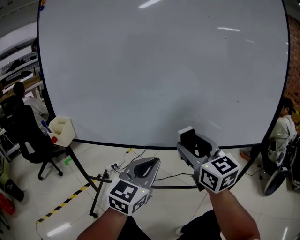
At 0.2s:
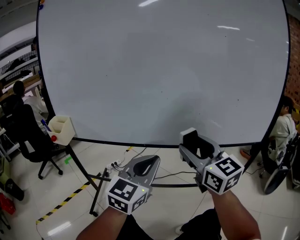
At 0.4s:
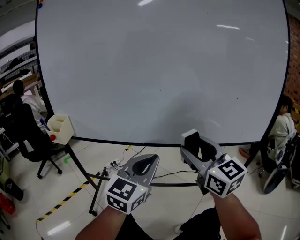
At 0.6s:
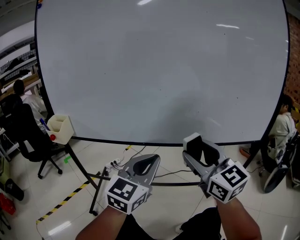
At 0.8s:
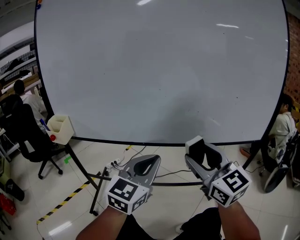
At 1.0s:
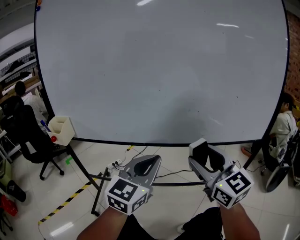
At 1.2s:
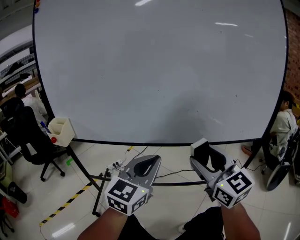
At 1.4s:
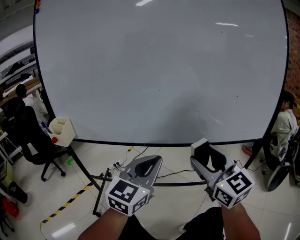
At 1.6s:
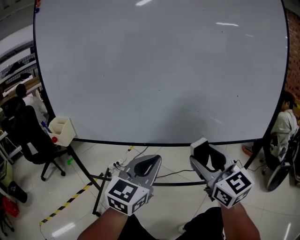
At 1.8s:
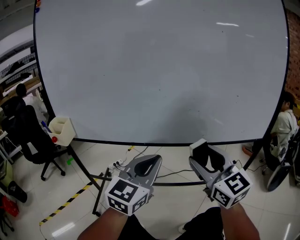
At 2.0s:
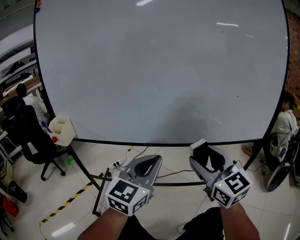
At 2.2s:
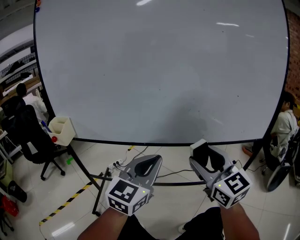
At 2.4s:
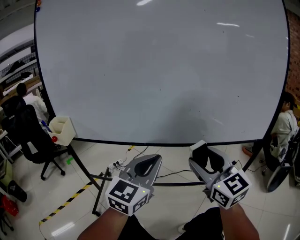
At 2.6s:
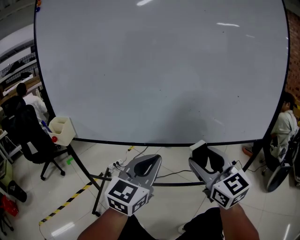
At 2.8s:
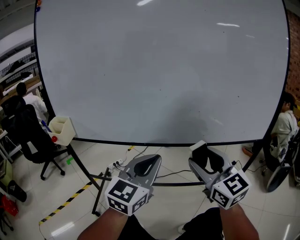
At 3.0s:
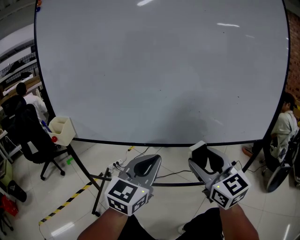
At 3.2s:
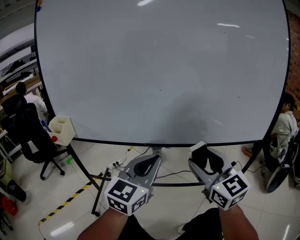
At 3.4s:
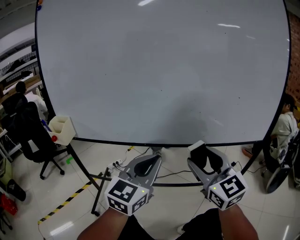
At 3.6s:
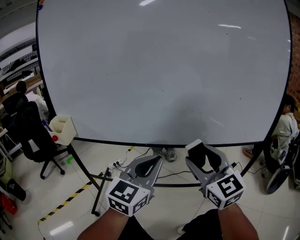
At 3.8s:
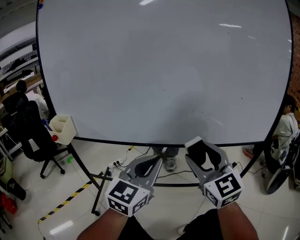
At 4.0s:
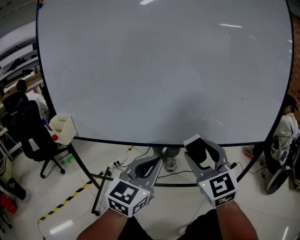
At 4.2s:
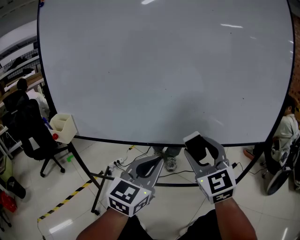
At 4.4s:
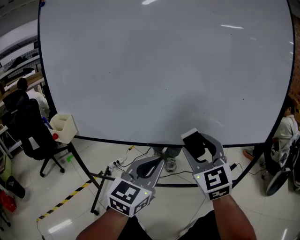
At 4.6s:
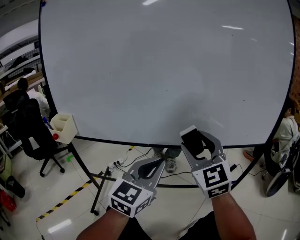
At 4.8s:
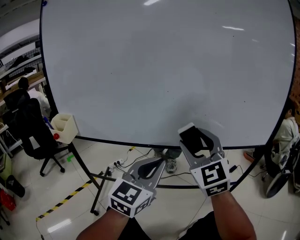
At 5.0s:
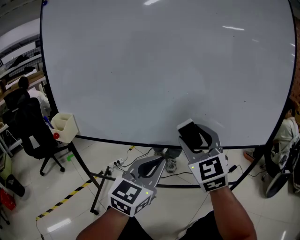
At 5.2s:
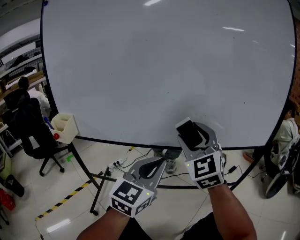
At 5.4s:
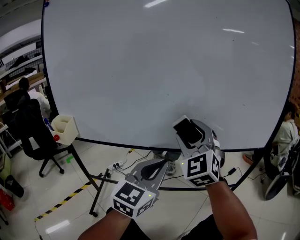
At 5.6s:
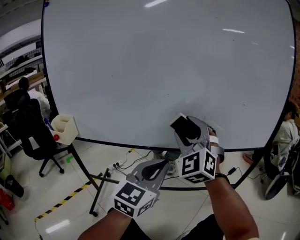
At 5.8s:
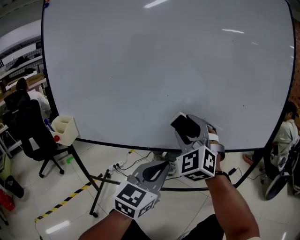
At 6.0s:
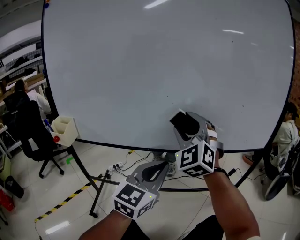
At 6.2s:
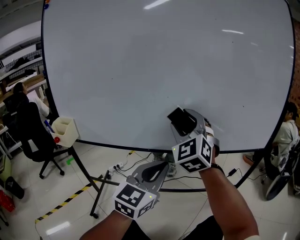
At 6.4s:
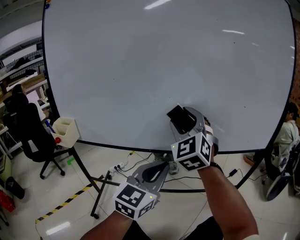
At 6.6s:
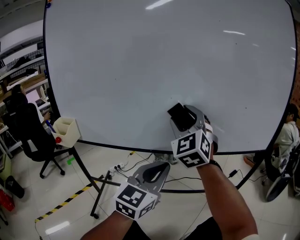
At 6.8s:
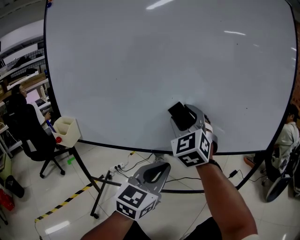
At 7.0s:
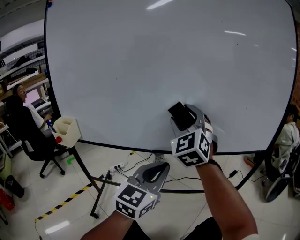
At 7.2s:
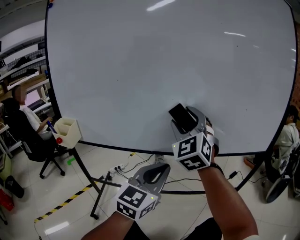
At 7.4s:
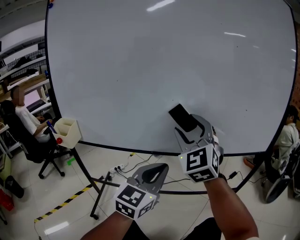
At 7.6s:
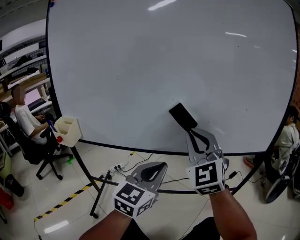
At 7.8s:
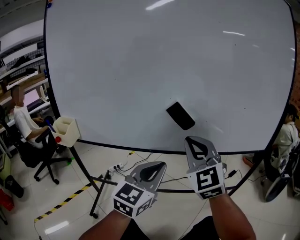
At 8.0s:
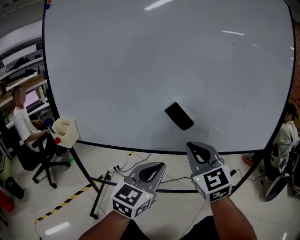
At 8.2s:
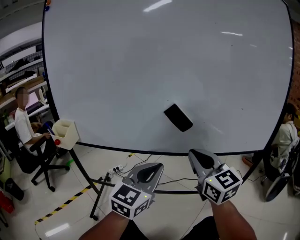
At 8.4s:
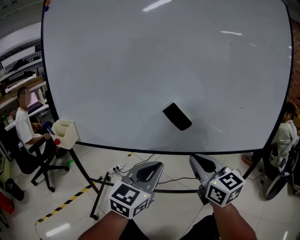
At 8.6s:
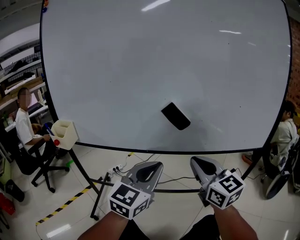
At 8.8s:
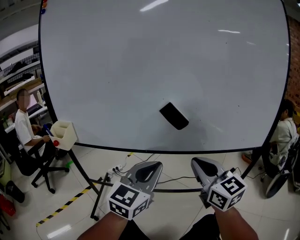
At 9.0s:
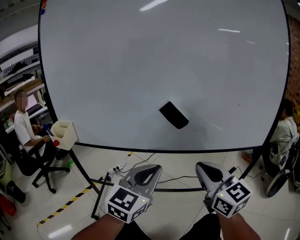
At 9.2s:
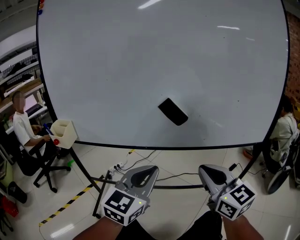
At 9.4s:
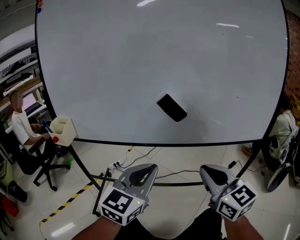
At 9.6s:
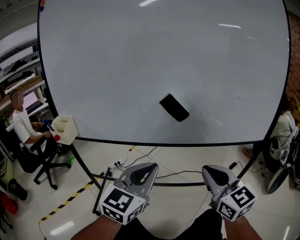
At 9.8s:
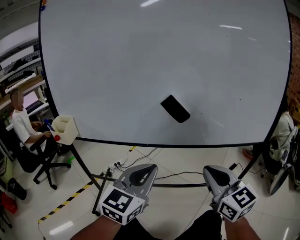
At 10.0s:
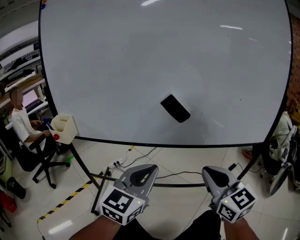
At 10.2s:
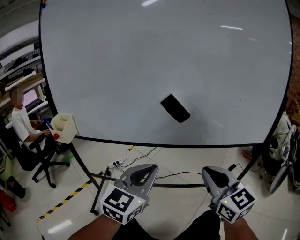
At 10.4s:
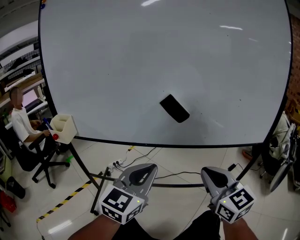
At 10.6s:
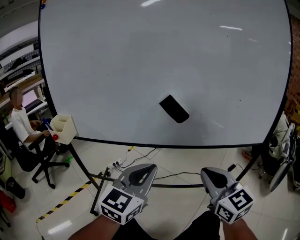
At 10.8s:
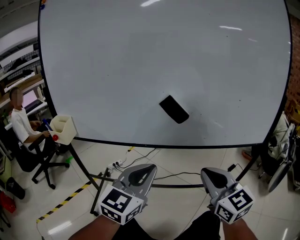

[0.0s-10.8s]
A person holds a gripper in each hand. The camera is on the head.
0.0s to 1.6s: The right gripper is displaced backward by roughly 5 cm.
1.6s to 3.0s: The two grippers keep their place.
3.0s to 4.6s: The right gripper moves roughly 5 cm, and turns by roughly 20 degrees.
4.6s to 6.2s: The right gripper heads forward and to the left, covering about 10 cm, and changes its angle by about 20 degrees.
6.2s to 7.8s: The right gripper travels backward by some 5 cm, and closes its fingers.
7.8s to 9.2s: The right gripper shifts roughly 10 cm backward and to the right, and changes its angle by roughly 40 degrees.
9.2s to 10.8s: The grippers move only a little.

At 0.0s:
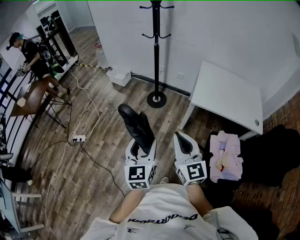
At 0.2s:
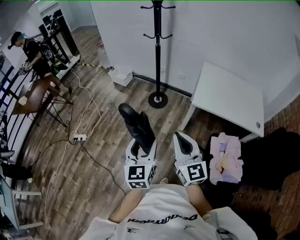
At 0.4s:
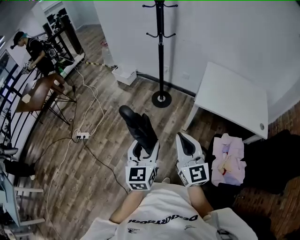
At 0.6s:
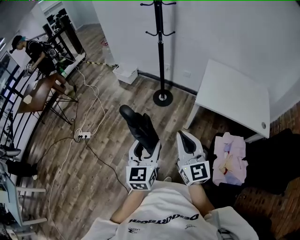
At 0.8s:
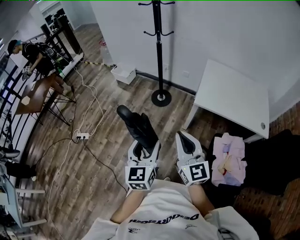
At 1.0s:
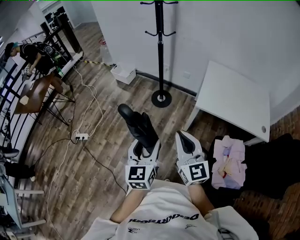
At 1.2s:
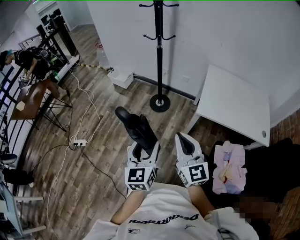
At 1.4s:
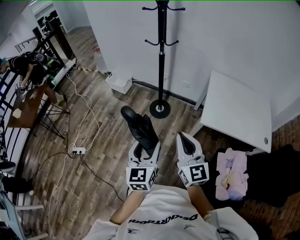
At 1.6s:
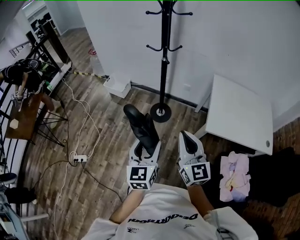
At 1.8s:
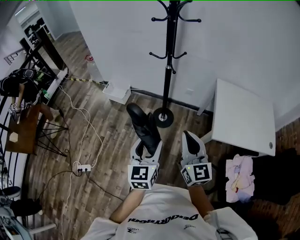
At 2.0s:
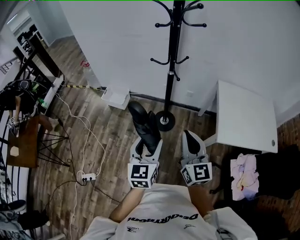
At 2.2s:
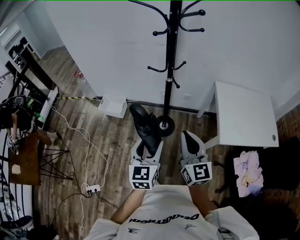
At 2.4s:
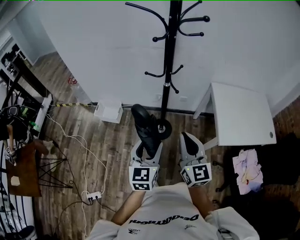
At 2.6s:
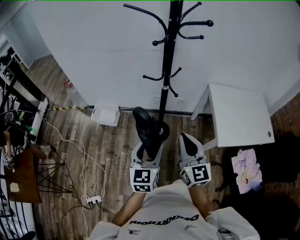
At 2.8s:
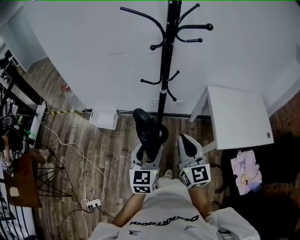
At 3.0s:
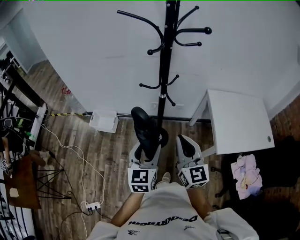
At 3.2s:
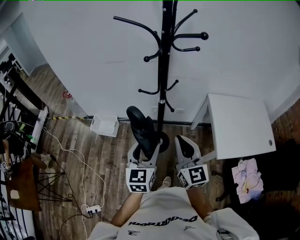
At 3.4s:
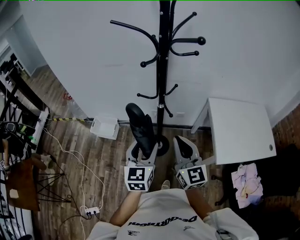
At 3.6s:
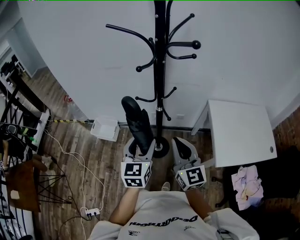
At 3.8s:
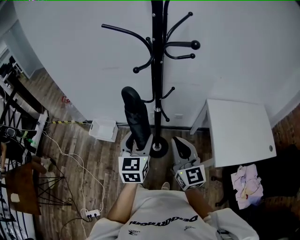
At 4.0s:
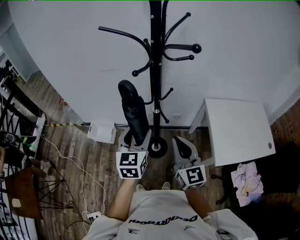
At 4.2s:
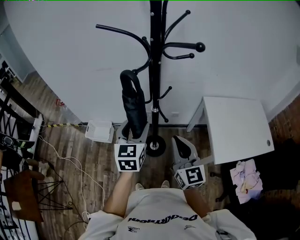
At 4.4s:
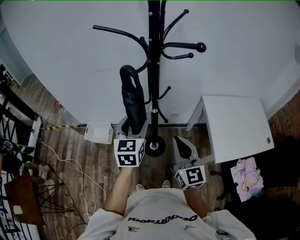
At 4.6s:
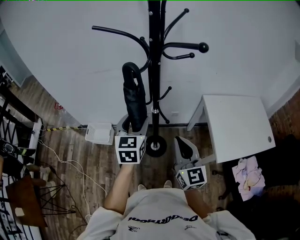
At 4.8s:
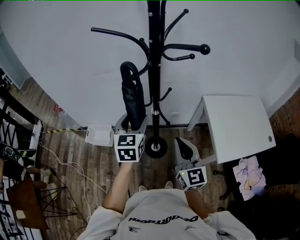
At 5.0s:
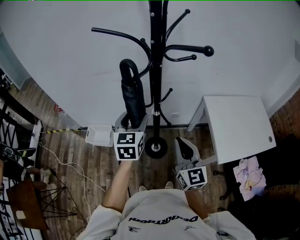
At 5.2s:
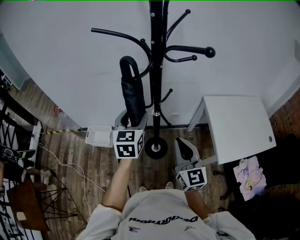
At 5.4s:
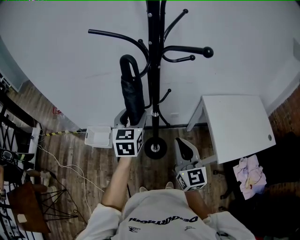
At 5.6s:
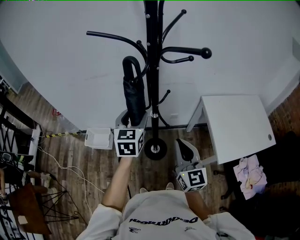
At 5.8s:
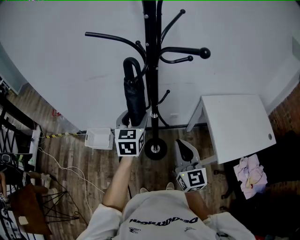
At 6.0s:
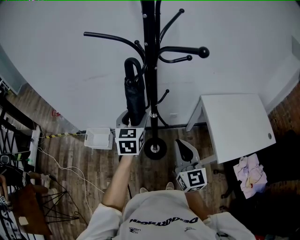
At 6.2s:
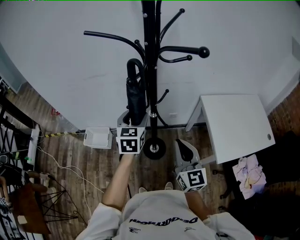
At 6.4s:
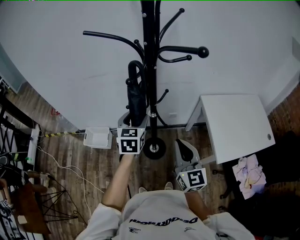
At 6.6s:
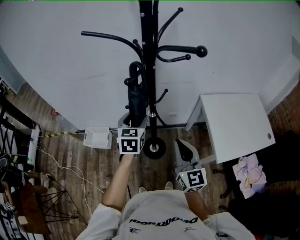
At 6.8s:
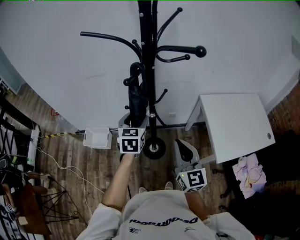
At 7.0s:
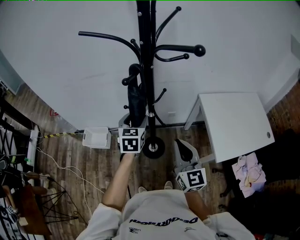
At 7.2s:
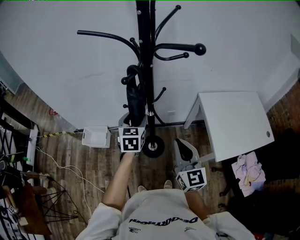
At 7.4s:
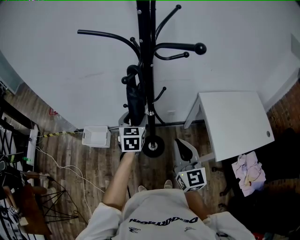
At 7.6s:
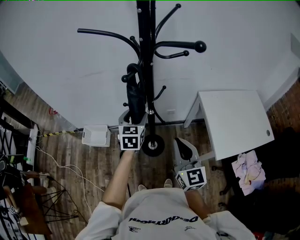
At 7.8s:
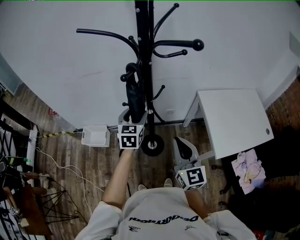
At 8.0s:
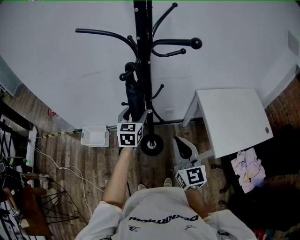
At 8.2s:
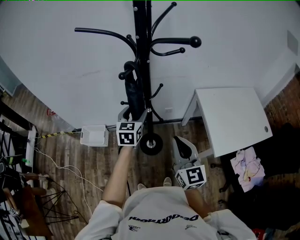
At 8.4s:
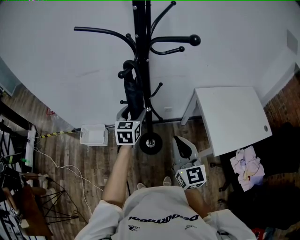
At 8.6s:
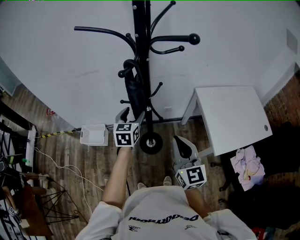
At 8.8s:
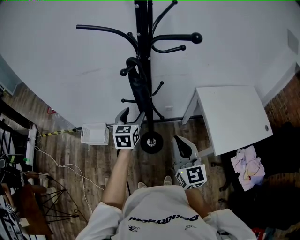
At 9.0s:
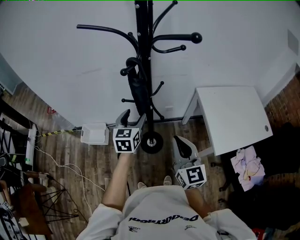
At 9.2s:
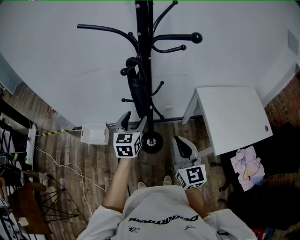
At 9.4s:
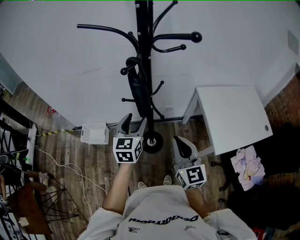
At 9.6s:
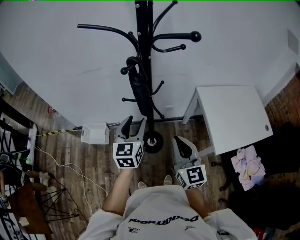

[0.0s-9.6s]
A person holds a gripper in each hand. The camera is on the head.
0.0s to 1.6s: Both grippers travel together forward, some 30 cm.
1.6s to 3.2s: The grippers both shift forward and to the left by approximately 35 cm.
3.2s to 4.8s: The left gripper shifts roughly 20 cm forward; the right gripper moves forward, some 10 cm.
4.8s to 6.4s: The left gripper moves approximately 5 cm.
6.4s to 8.0s: The grippers move only a little.
8.0s to 9.6s: The left gripper shifts some 10 cm backward.

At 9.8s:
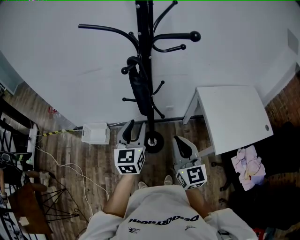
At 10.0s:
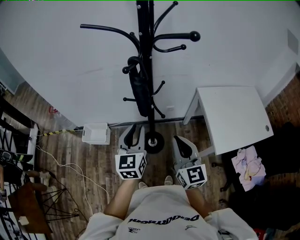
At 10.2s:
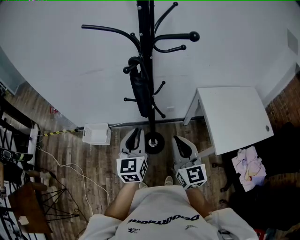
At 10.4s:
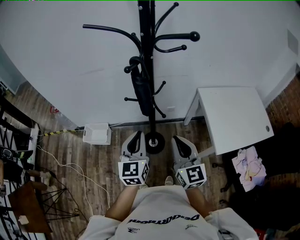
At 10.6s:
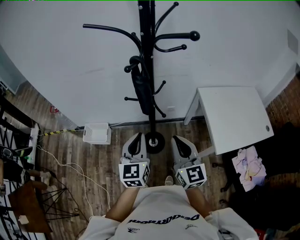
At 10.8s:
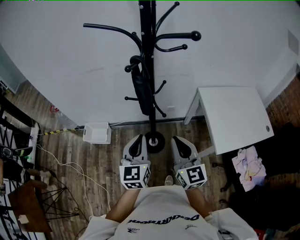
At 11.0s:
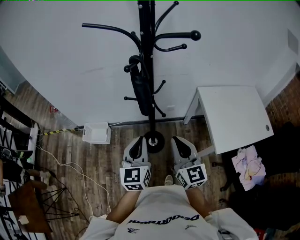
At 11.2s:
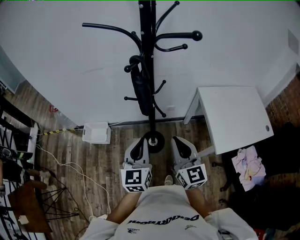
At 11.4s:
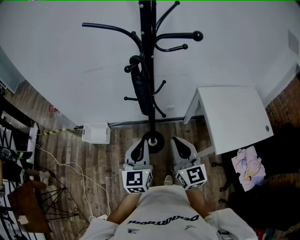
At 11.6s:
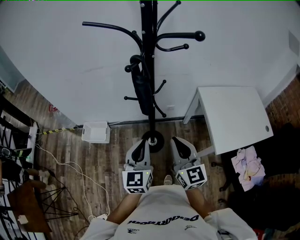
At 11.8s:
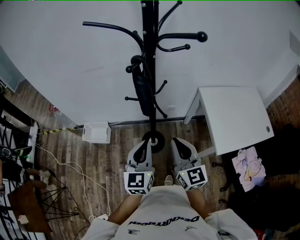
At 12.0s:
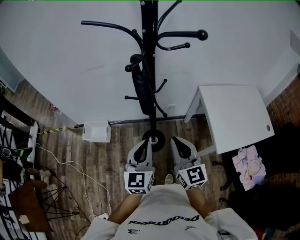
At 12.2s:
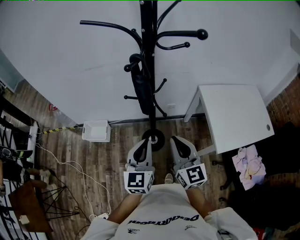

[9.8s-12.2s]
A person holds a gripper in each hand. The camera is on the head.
9.8s to 11.0s: The left gripper heads backward, covering approximately 5 cm, and closes up.
11.0s to 12.2s: The grippers move only a little.

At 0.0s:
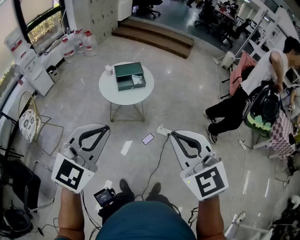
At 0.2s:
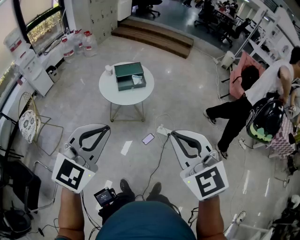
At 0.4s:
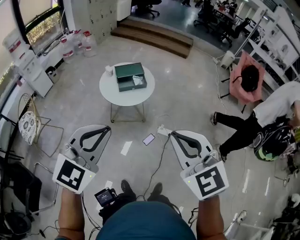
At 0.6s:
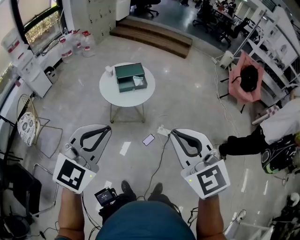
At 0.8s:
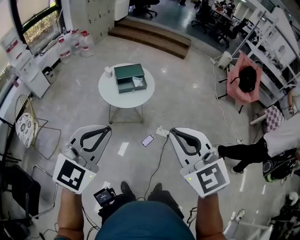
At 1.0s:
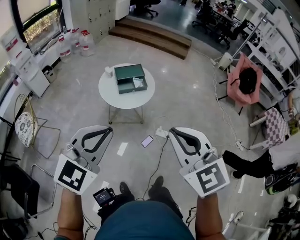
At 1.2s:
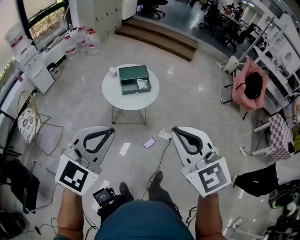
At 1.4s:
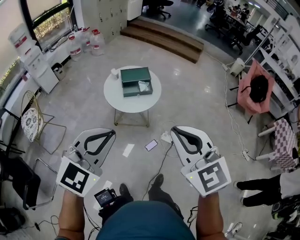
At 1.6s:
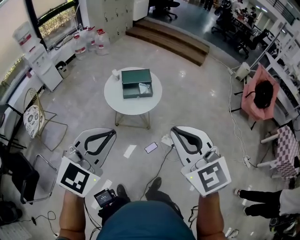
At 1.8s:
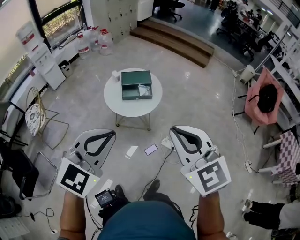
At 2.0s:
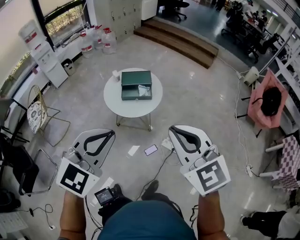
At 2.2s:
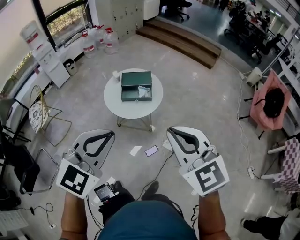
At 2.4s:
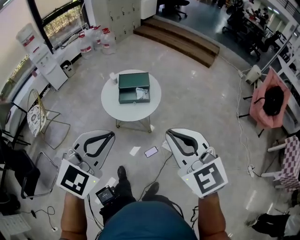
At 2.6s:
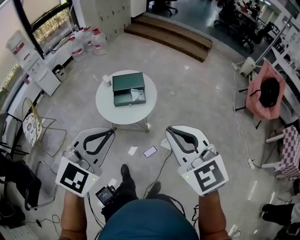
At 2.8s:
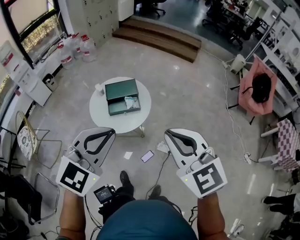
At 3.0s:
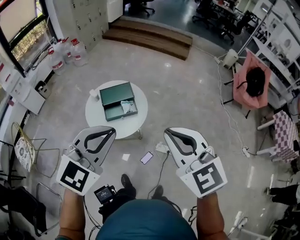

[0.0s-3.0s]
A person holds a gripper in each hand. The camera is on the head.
0.0s to 1.6s: The two grippers go roughly 15 cm forward.
1.6s to 3.0s: Both grippers travel together forward, some 30 cm.
